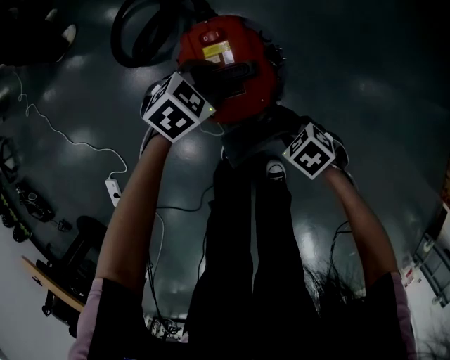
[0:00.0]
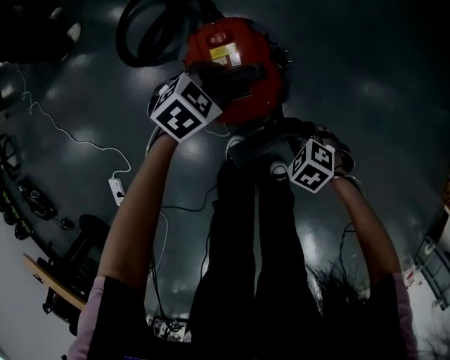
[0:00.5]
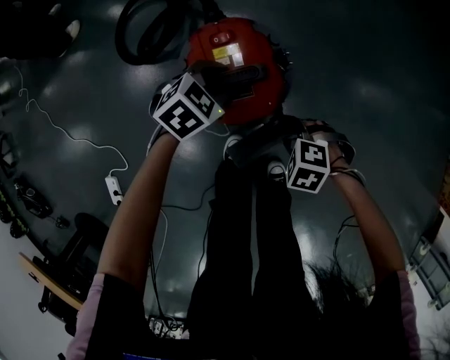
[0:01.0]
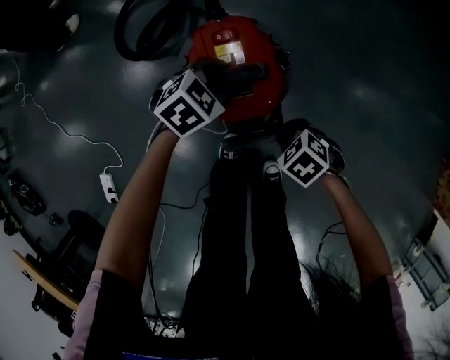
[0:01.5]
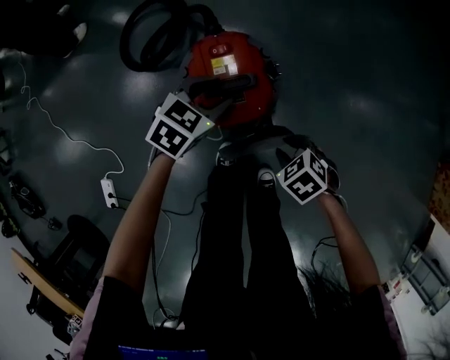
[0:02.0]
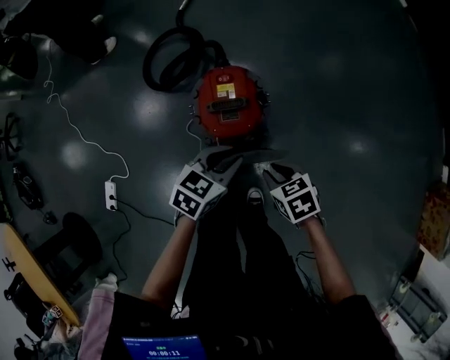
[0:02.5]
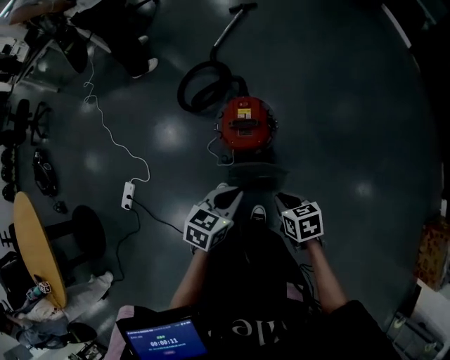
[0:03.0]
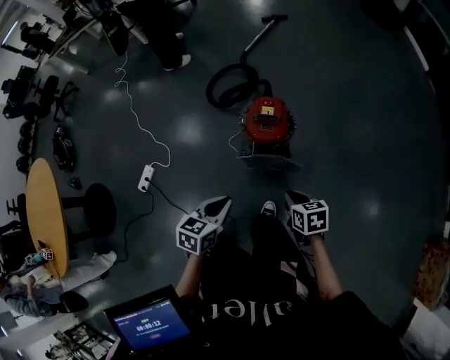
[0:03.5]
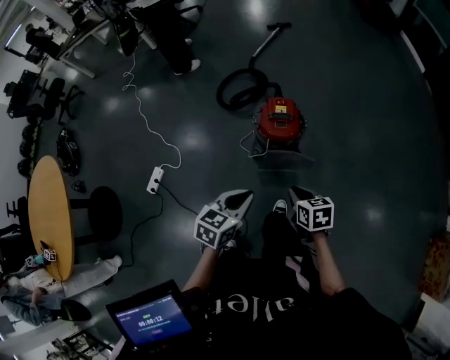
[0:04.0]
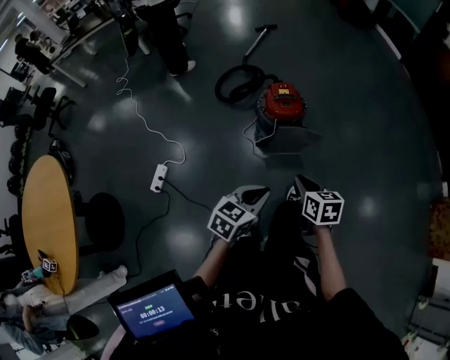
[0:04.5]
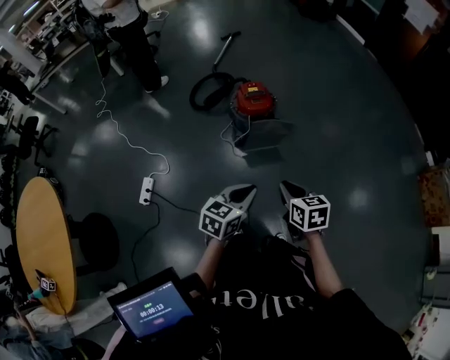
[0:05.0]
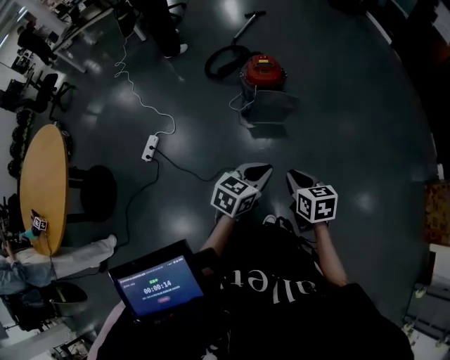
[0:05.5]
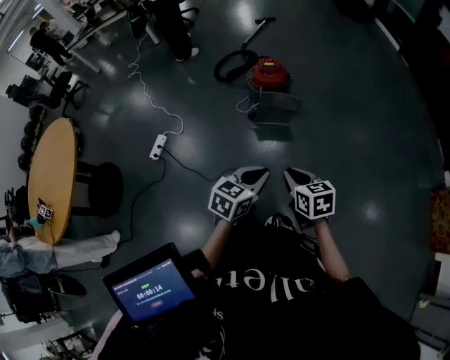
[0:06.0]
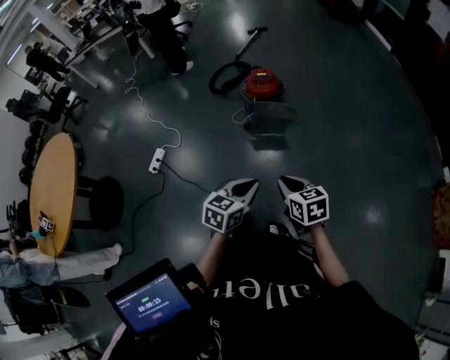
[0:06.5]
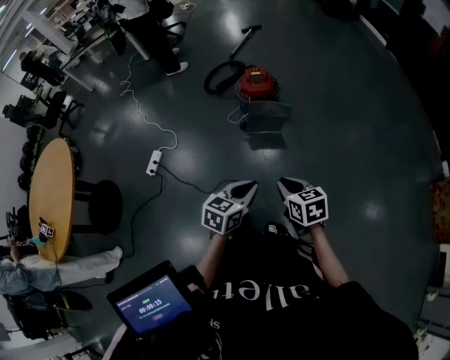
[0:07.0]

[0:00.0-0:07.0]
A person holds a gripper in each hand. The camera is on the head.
0:00.0 to 0:02.0: Both grippers travel together upward, approximately 5 cm.
0:02.0 to 0:03.5: The left gripper ends up about 50 cm from where it was, rotates roughly 50 degrees, and closes up. Meanwhile the right gripper heads upward, covering roughly 30 cm, and turns by about 30 degrees.
0:03.5 to 0:05.0: The left gripper ends up about 30 cm from where it was, and swivels approximately 30 degrees; the right gripper changes place by roughly 40 cm, and turns by some 30 degrees.
0:05.0 to 0:07.0: The grippers both shift to the right and backward by roughly 20 cm.

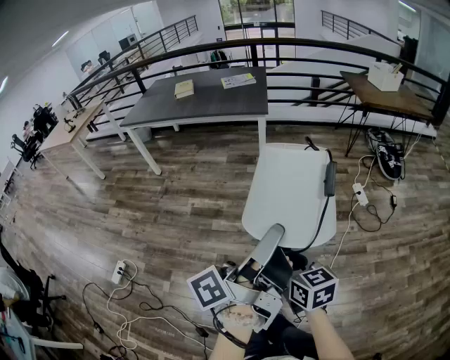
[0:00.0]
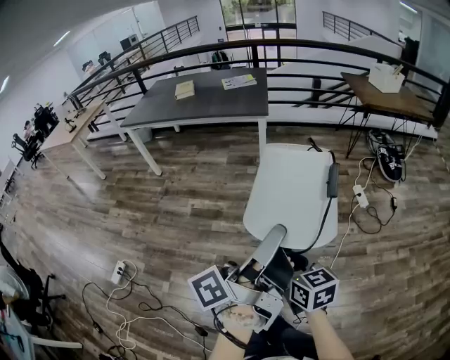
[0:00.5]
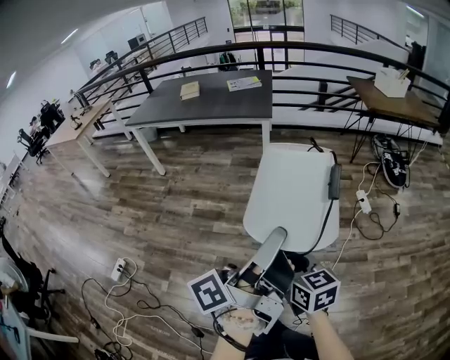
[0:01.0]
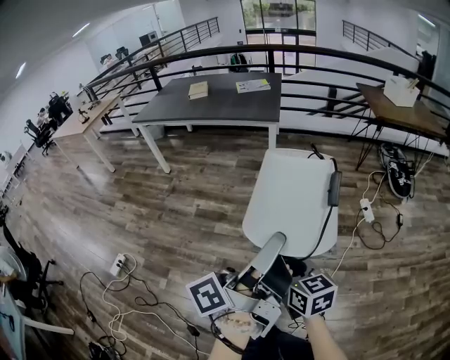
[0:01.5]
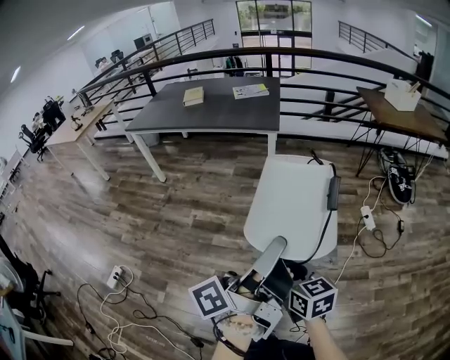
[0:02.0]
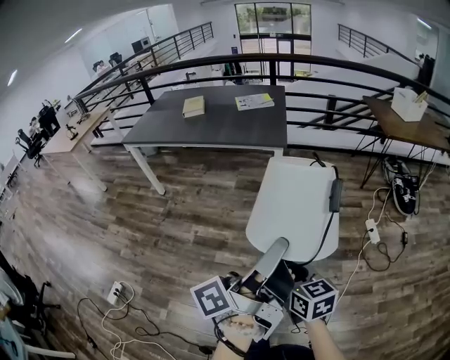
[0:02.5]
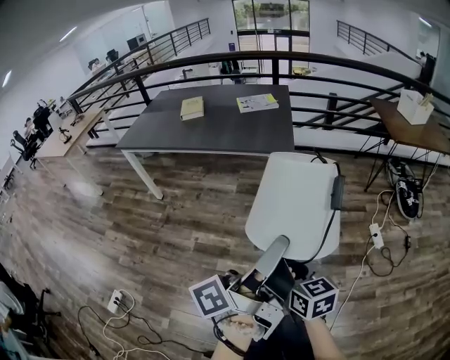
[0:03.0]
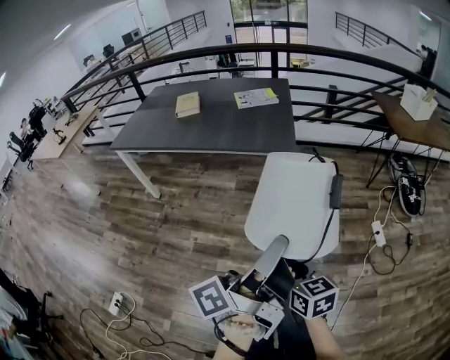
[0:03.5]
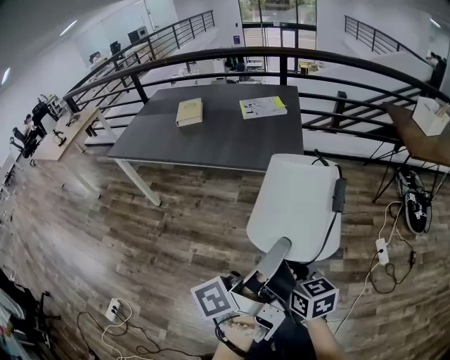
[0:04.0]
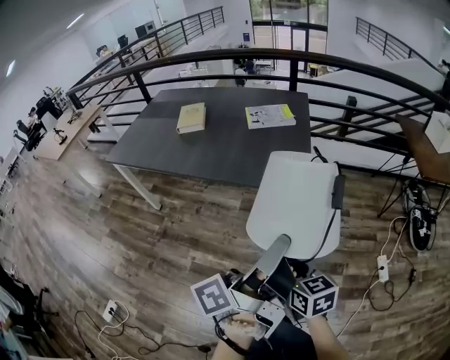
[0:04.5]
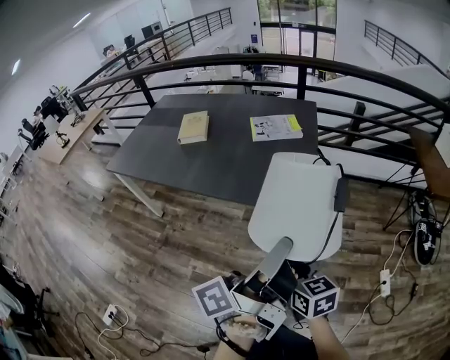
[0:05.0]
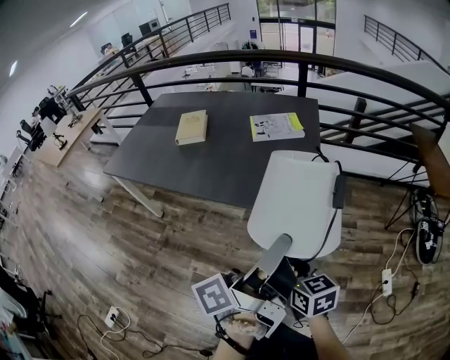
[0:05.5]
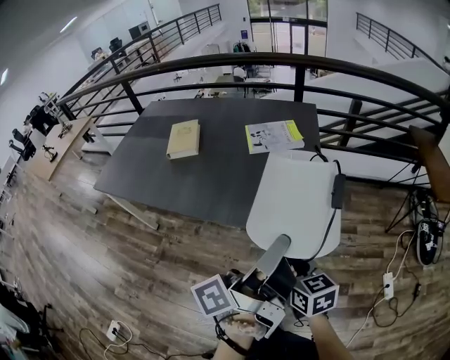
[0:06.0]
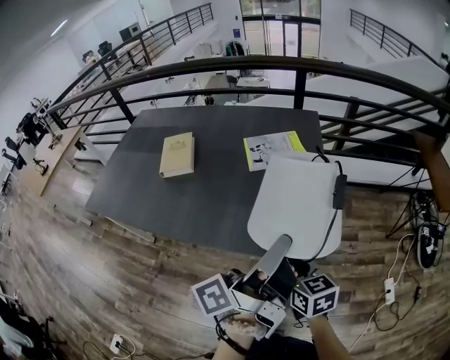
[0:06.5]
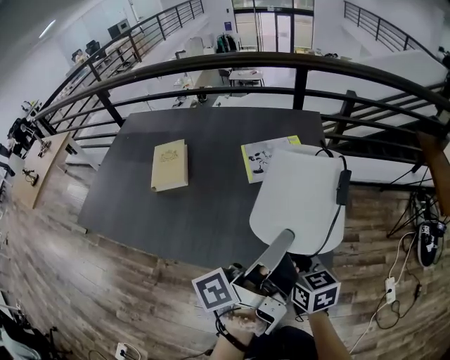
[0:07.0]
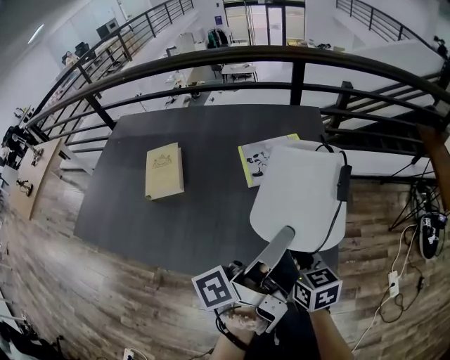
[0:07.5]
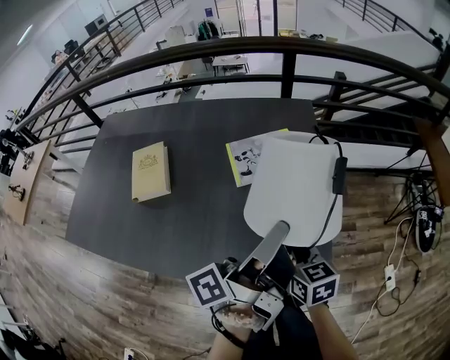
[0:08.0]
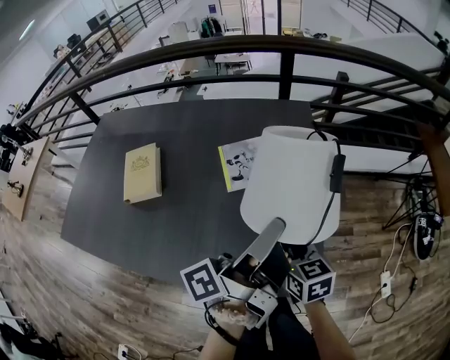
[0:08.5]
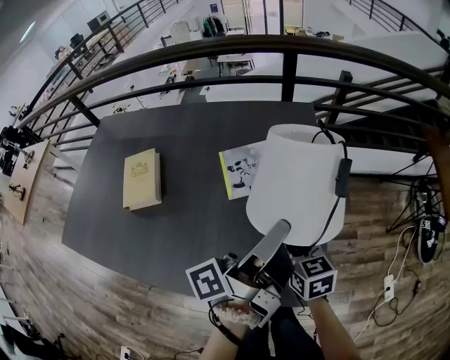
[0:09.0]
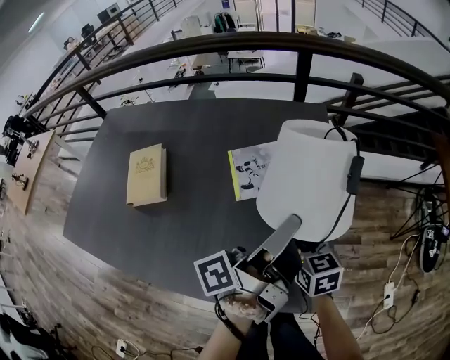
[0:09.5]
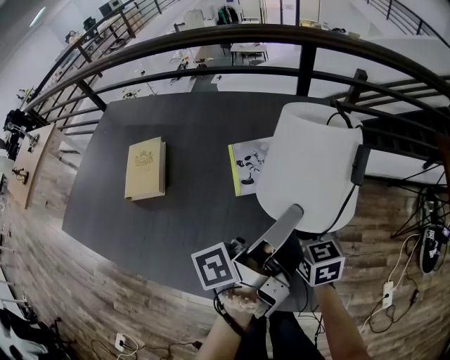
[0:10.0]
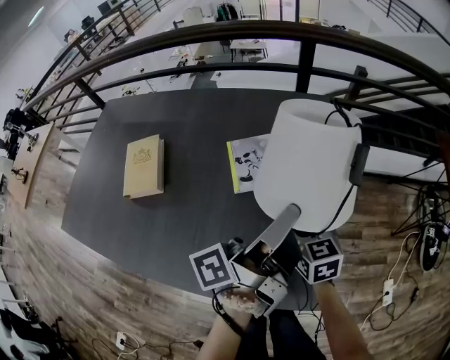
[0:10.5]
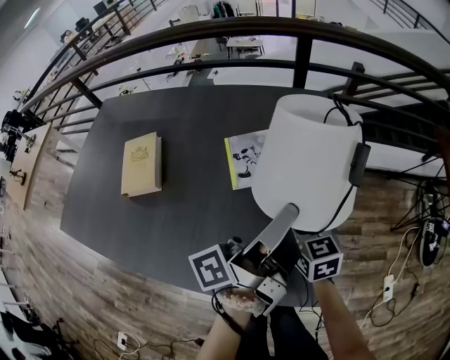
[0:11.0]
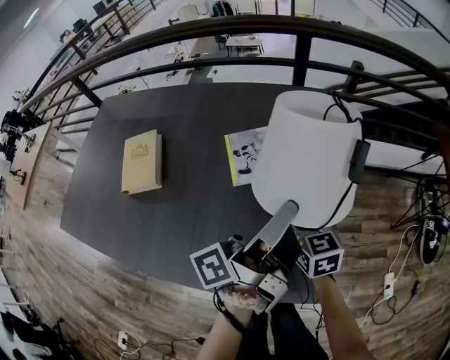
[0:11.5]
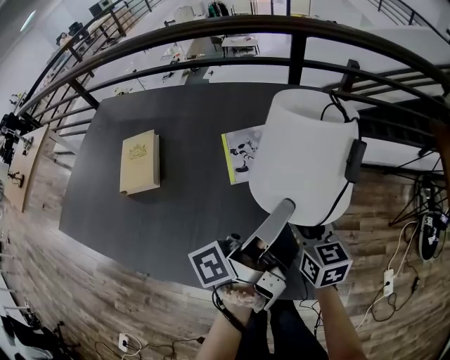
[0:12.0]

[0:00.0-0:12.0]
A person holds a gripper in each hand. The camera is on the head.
0:00.0 to 0:02.0: The right gripper changes place by some 10 cm.
0:02.0 to 0:04.0: The right gripper changes place by roughly 40 cm.
0:04.0 to 0:06.0: The right gripper moves roughly 30 cm.
0:06.0 to 0:08.0: The right gripper moves some 25 cm.
0:08.0 to 0:10.0: The right gripper shifts by roughly 15 cm.

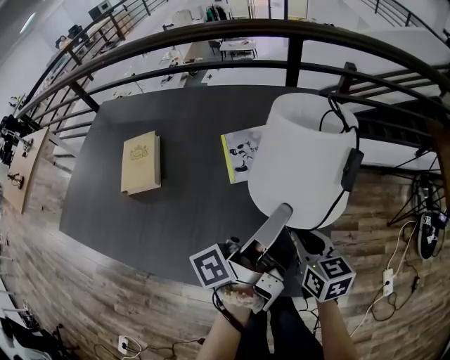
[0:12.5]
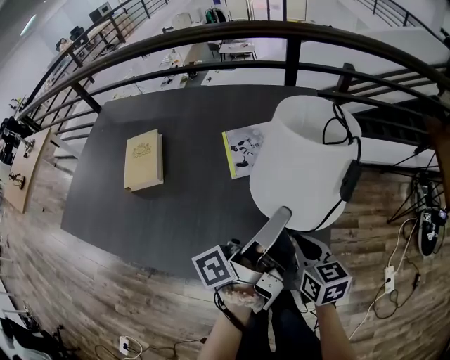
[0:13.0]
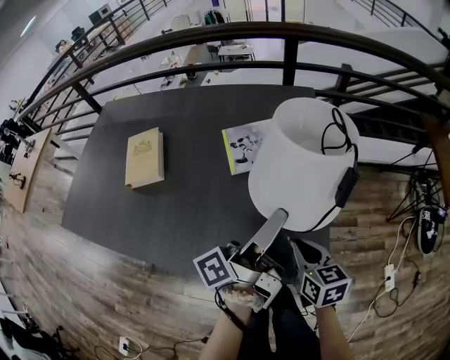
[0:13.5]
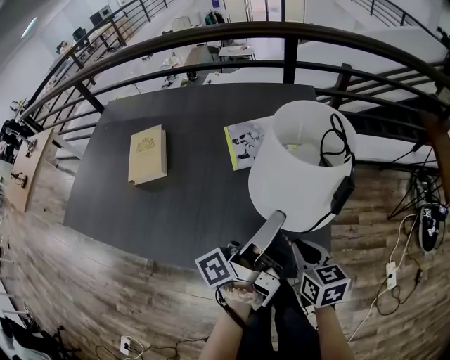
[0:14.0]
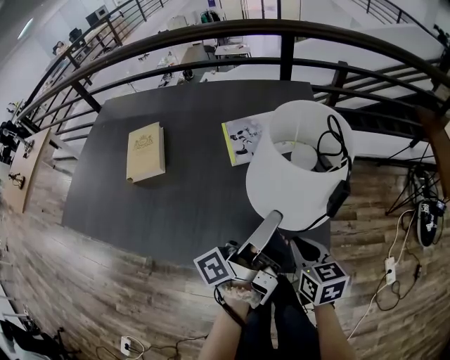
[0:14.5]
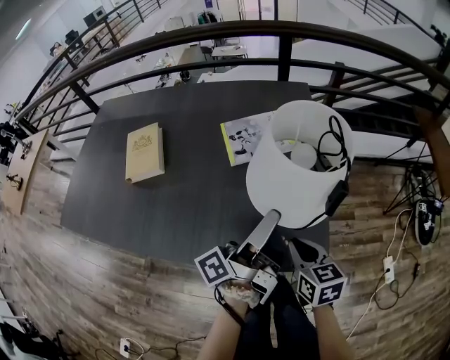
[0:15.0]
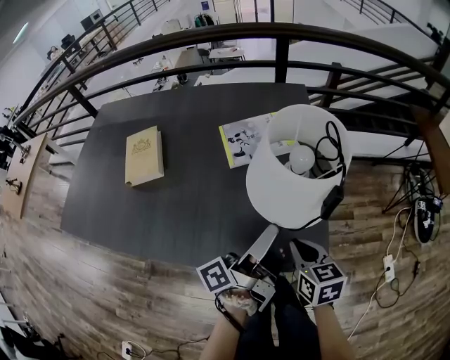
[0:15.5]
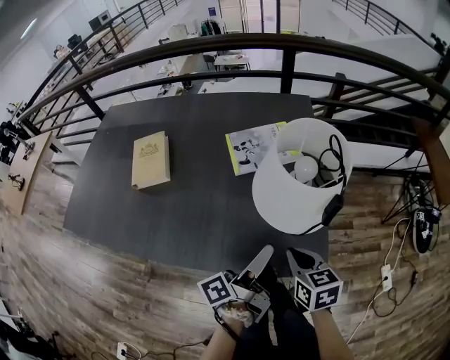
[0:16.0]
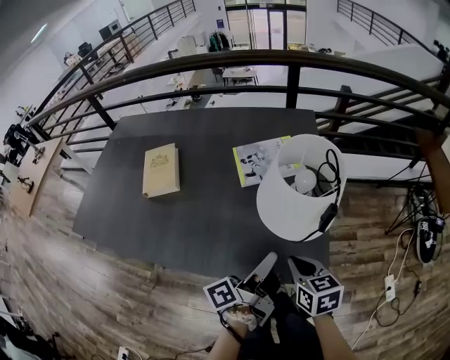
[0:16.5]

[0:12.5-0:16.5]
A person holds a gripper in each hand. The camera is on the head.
0:12.5 to 0:14.5: The right gripper ends up some 10 cm from where it was.

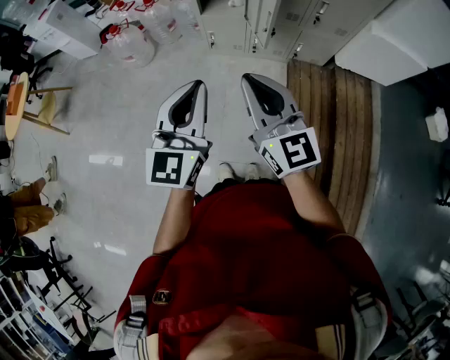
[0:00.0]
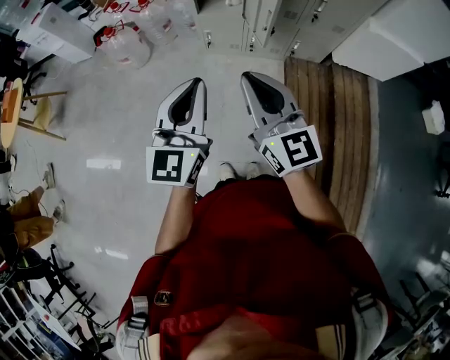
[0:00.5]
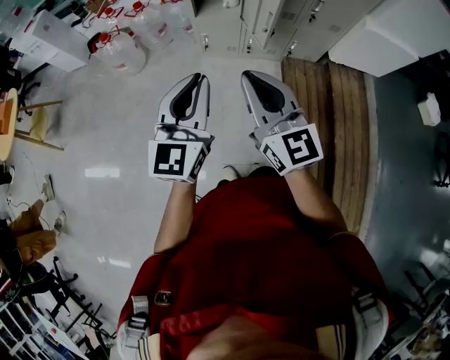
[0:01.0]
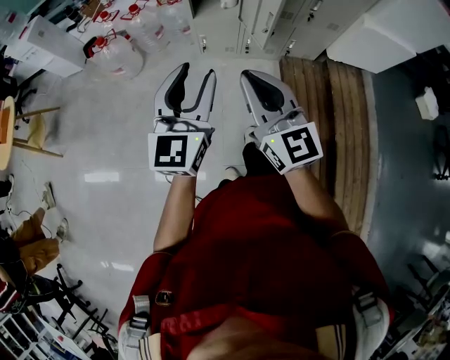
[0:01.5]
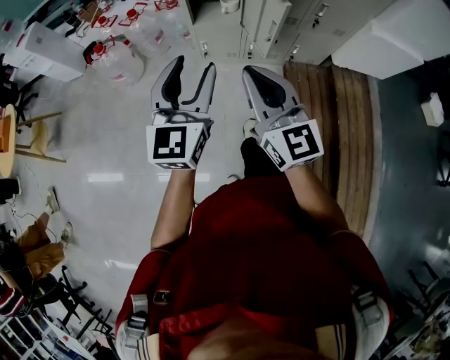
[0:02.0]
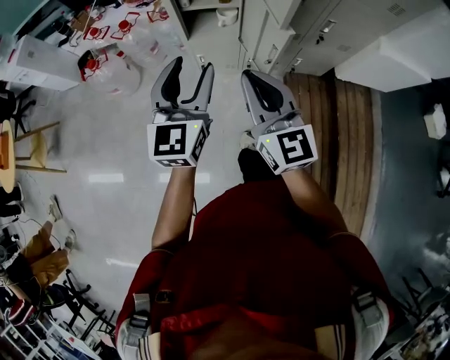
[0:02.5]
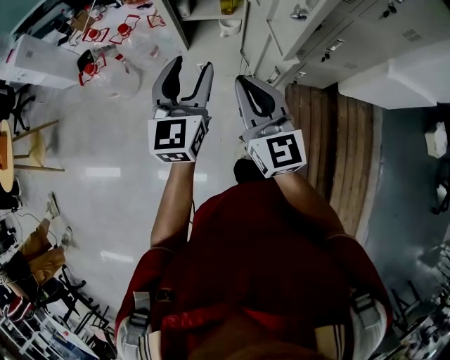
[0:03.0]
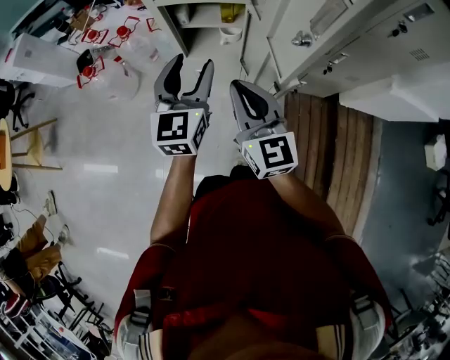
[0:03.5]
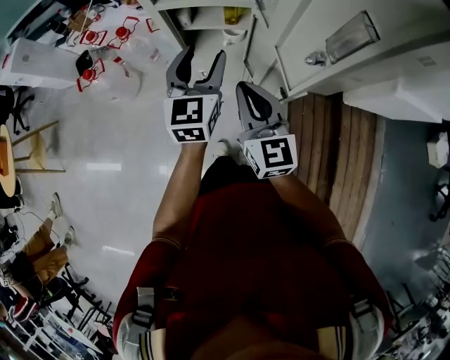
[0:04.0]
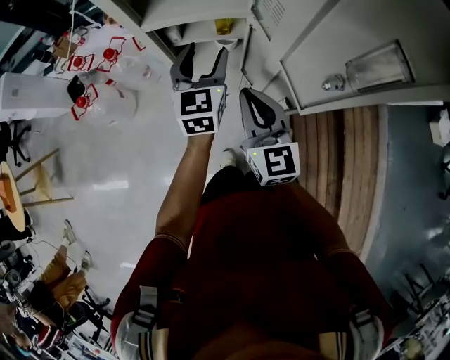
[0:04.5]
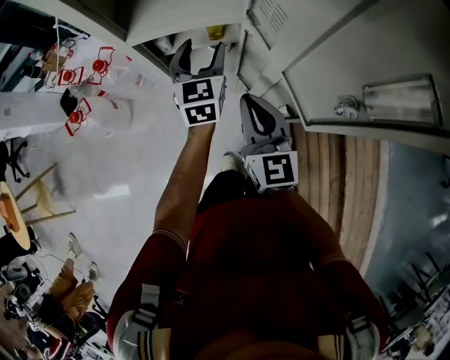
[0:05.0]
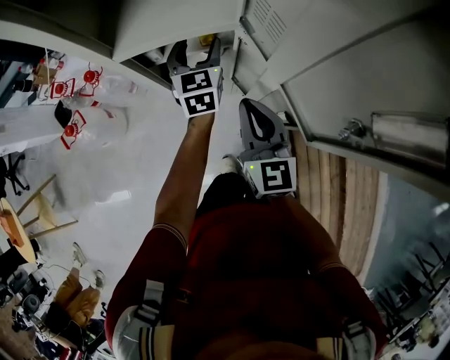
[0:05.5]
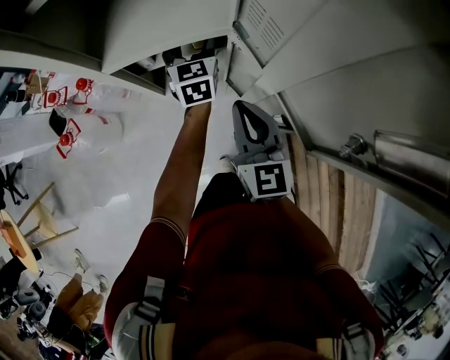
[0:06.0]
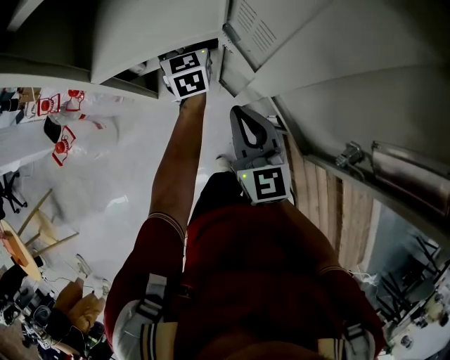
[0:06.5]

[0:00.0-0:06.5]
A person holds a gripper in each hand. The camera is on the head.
0:00.0 to 0:02.0: The left gripper shifts some 15 cm forward, and opens up, while the right gripper shifts approximately 15 cm forward and to the left.
0:02.0 to 0:04.5: The grippers both shift forward by approximately 40 cm.
0:04.5 to 0:06.5: The right gripper moves forward and downward, about 10 cm, while the left gripper moves forward and downward, roughly 20 cm.
